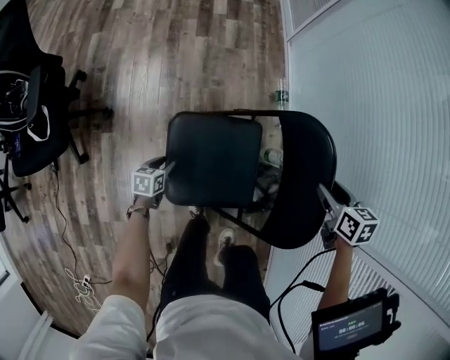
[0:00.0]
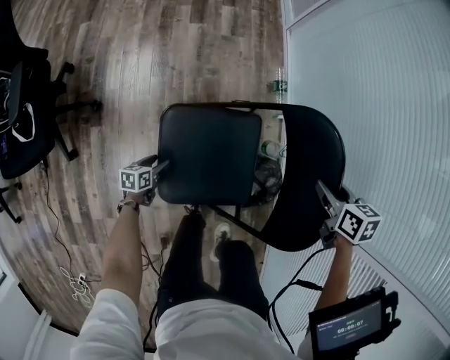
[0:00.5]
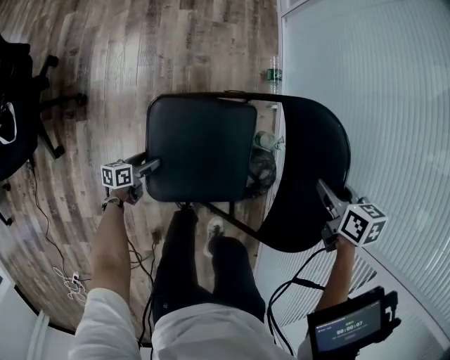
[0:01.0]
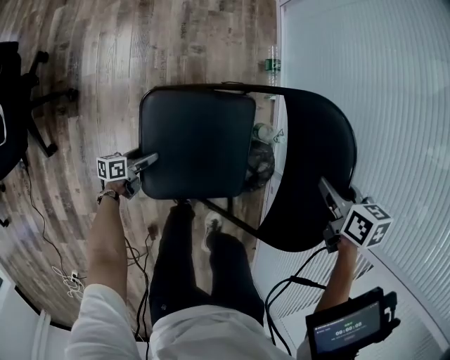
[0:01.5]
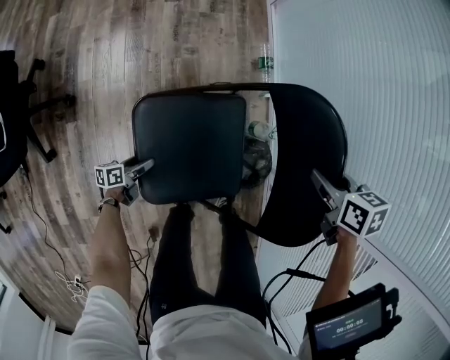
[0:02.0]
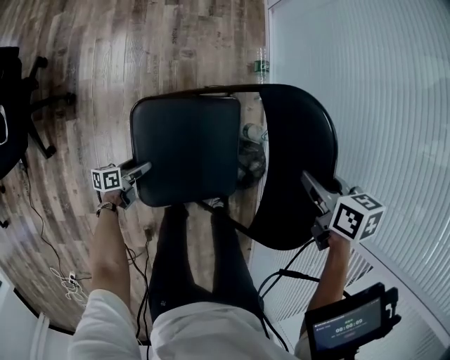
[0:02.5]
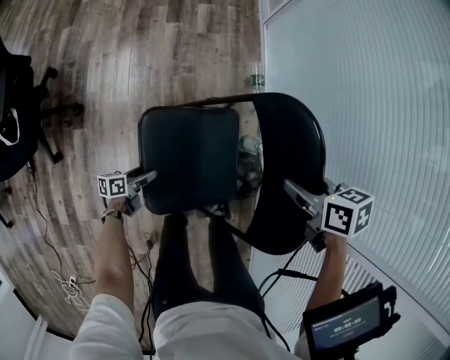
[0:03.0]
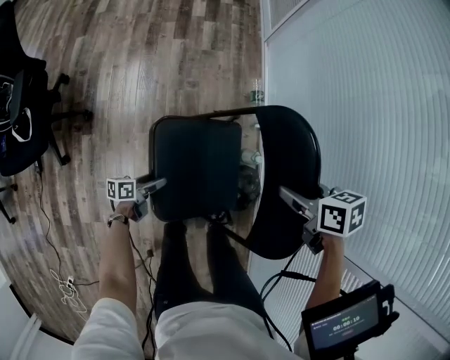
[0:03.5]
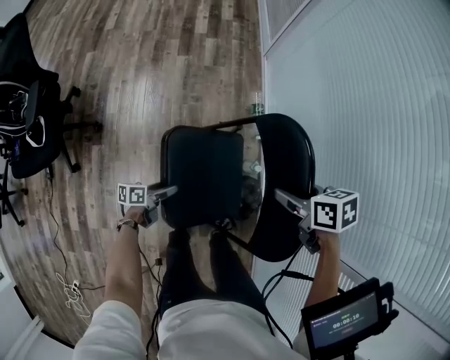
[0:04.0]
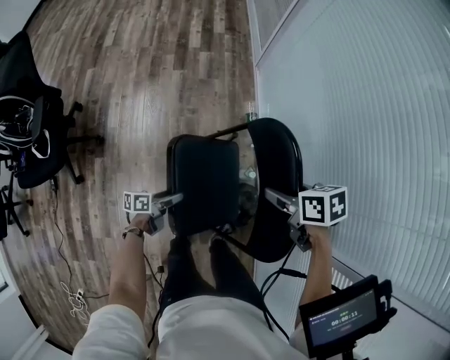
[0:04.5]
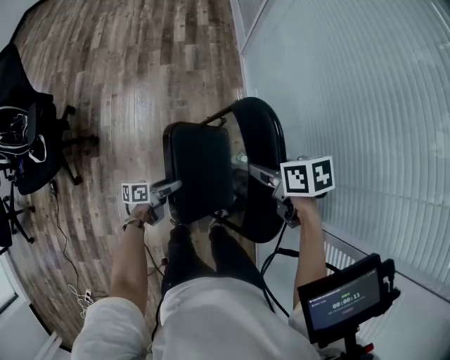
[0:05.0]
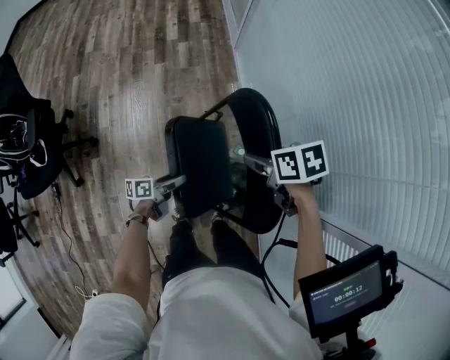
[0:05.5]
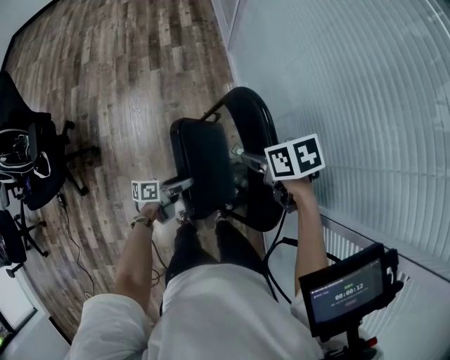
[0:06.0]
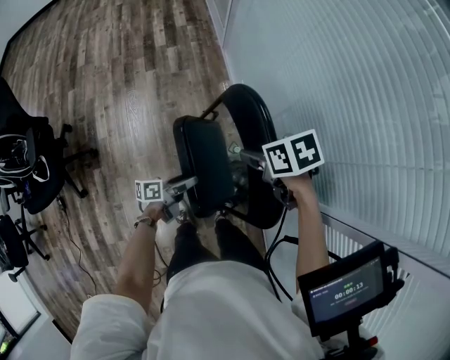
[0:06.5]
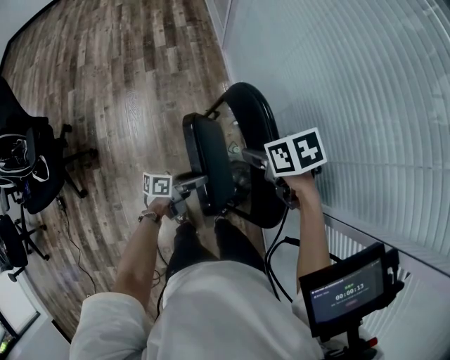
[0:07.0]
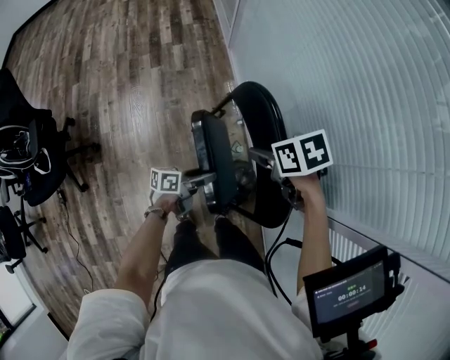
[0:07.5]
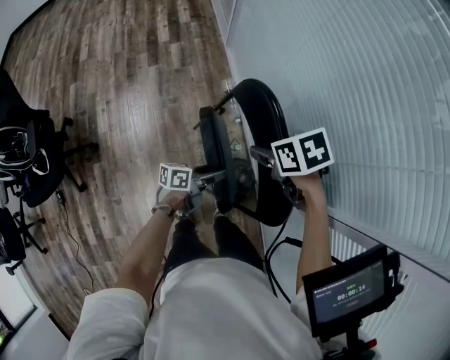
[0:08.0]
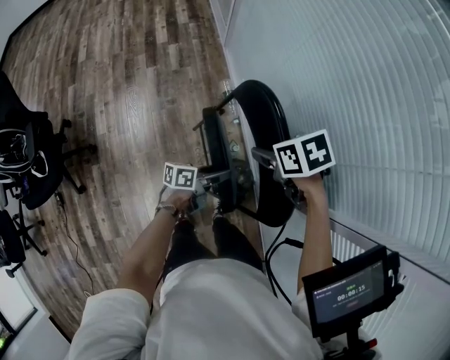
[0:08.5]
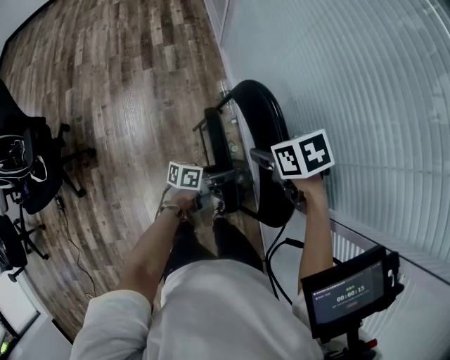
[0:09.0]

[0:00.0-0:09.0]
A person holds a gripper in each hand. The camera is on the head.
0:00.0 to 0:02.0: The left gripper shifts some 10 cm downward, turns by approximately 40 degrees, and opens.
0:02.0 to 0:04.5: The left gripper shifts about 25 cm upward and to the right. Meanwhile the right gripper heads upward, covering some 10 cm.
0:04.5 to 0:07.0: The left gripper changes place by approximately 15 cm.
0:07.0 to 0:09.0: The left gripper changes place by some 10 cm.

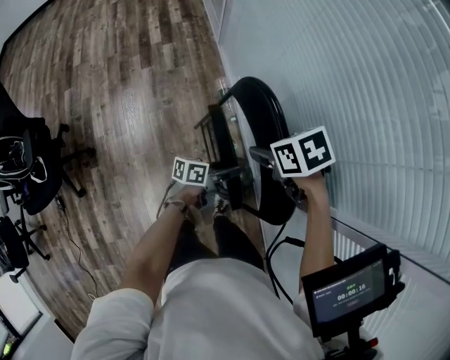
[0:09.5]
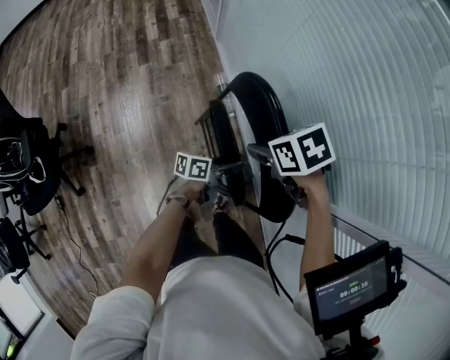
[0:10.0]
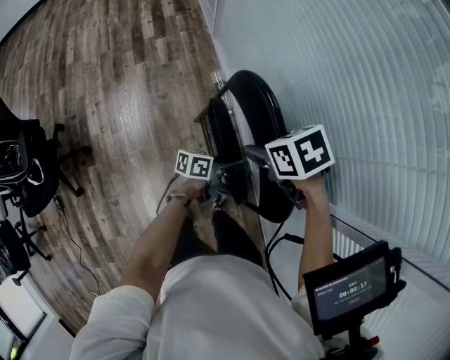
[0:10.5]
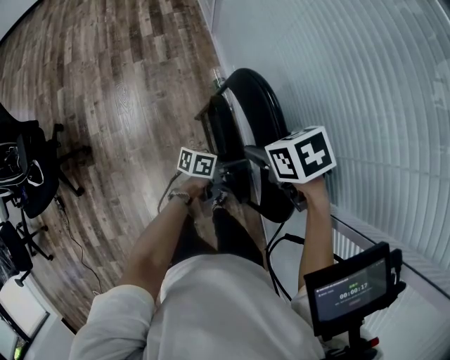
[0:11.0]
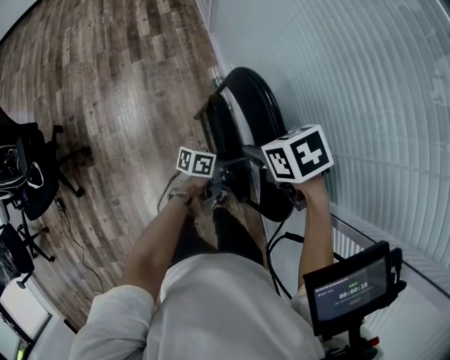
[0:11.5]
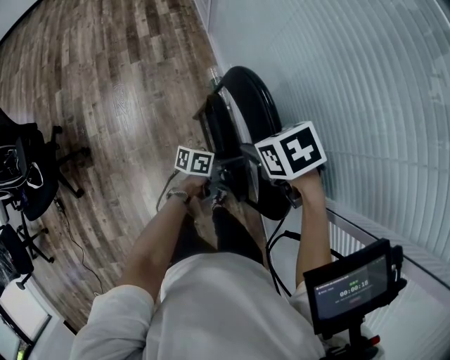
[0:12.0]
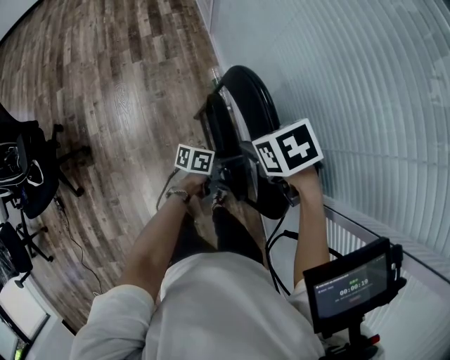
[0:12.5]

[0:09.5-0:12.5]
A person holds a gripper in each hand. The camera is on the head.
0:09.5 to 0:12.5: There are only small adjustments of the grippers.

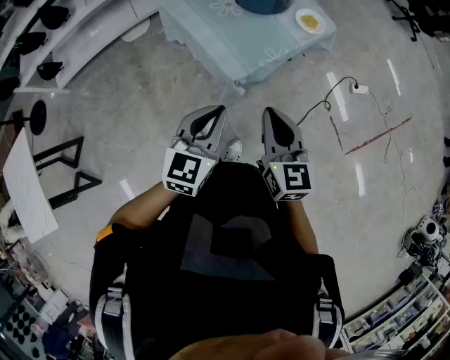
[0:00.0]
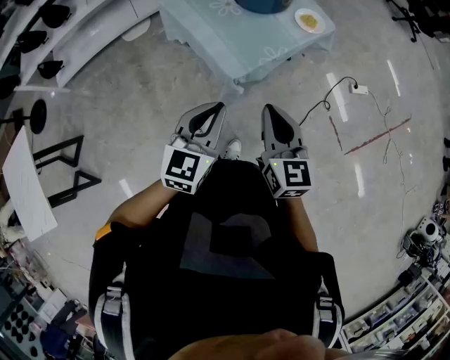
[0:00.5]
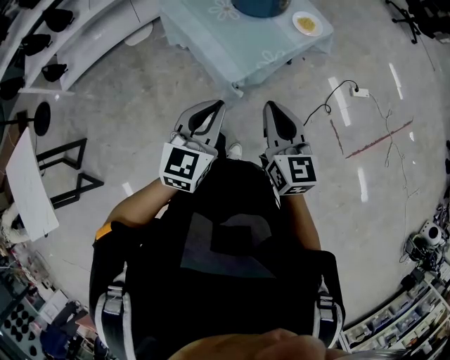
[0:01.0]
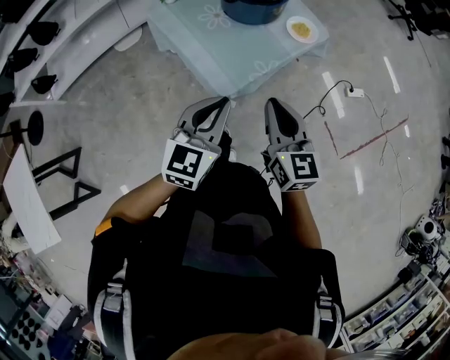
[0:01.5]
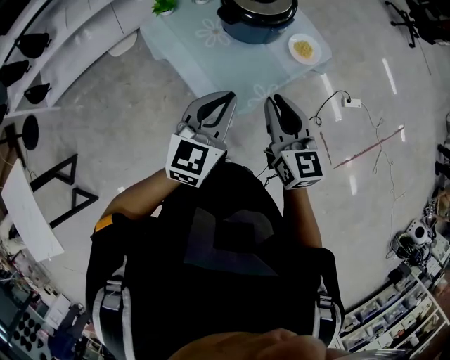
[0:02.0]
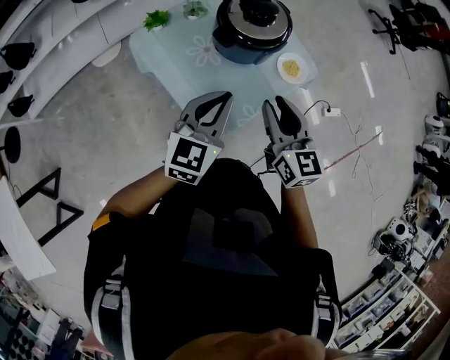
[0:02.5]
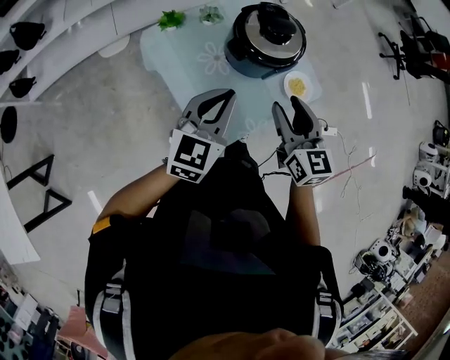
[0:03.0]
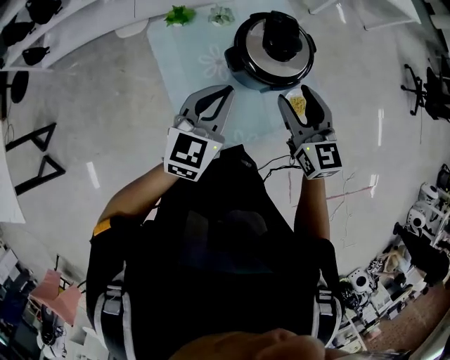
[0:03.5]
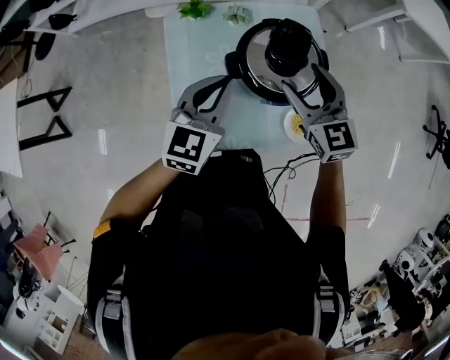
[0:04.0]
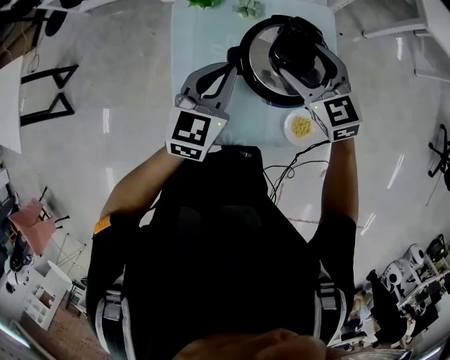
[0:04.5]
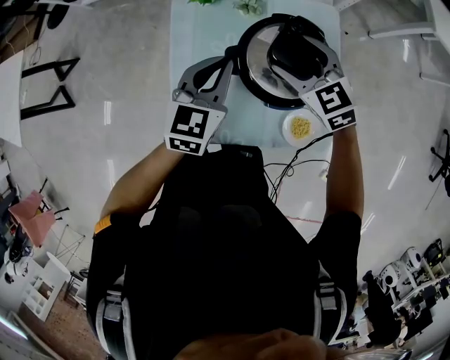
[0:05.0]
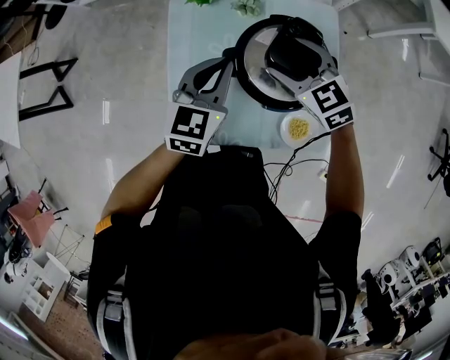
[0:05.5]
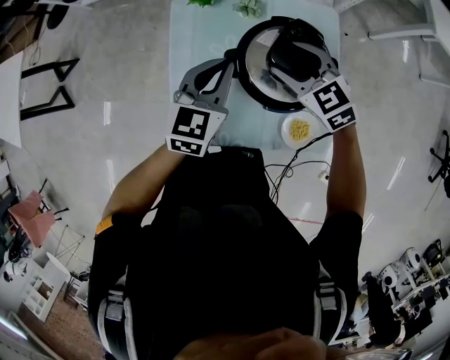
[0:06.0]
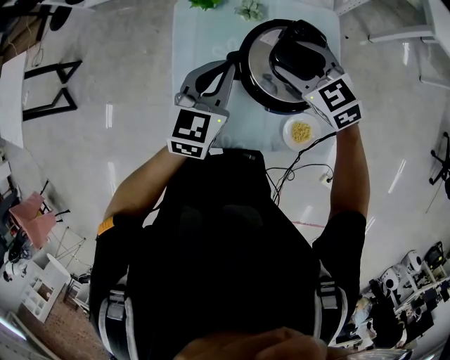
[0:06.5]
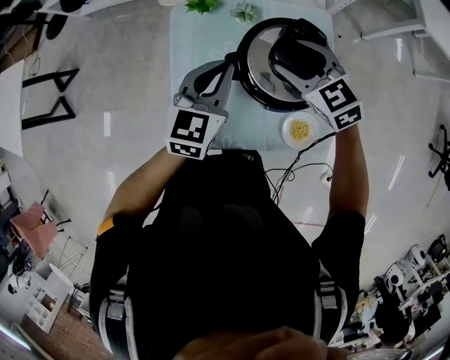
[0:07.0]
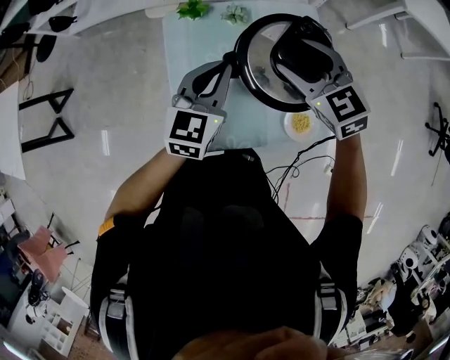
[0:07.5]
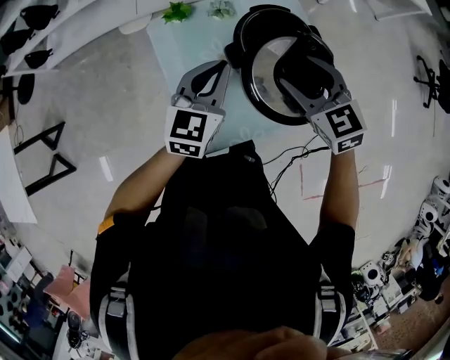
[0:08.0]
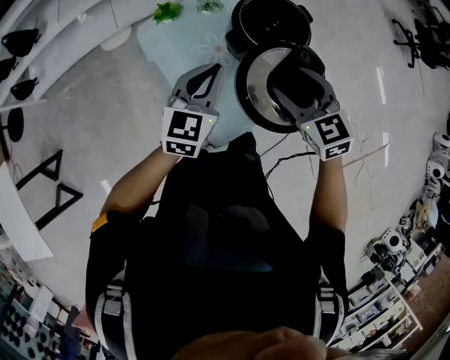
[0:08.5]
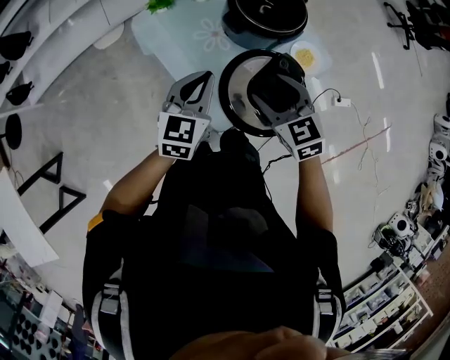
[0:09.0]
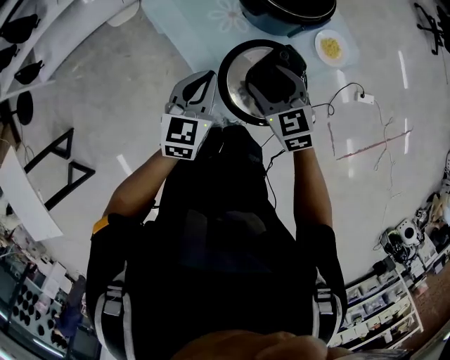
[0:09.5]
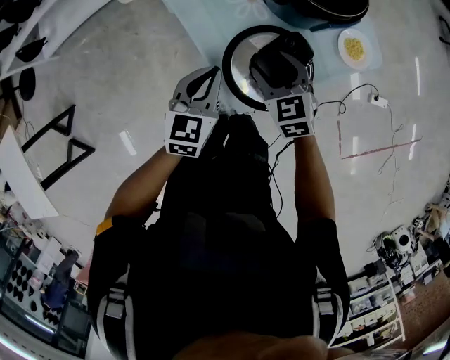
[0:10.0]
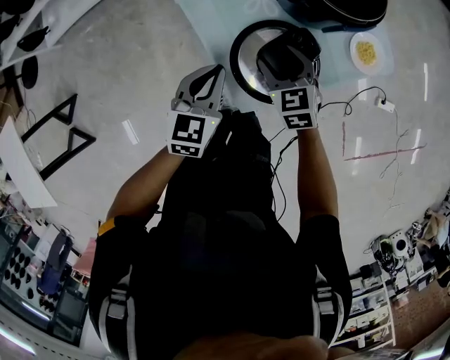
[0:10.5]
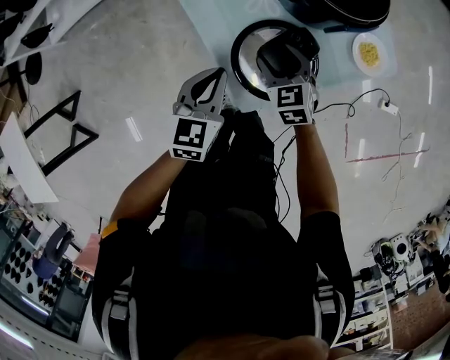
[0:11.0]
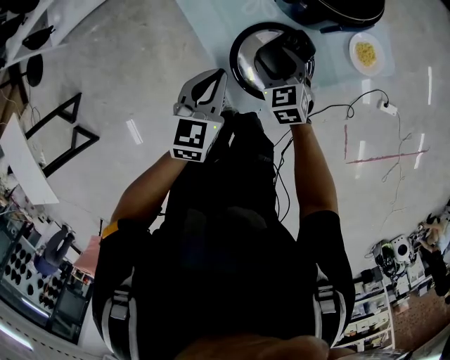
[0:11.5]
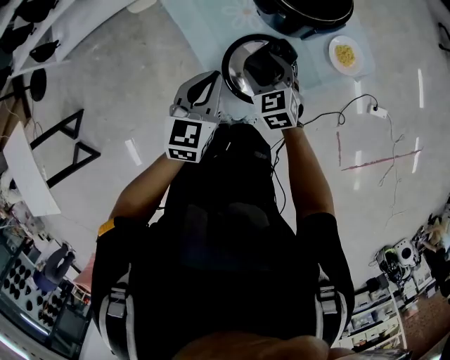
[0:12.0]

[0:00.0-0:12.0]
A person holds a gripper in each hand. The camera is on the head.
0:00.0 to 0:02.0: Both grippers move forward, roughly 25 cm.
0:02.0 to 0:04.0: The right gripper changes place by approximately 35 cm, swivels approximately 50 degrees, and opens up, while the left gripper ends up about 25 cm from where it was, and swivels roughly 30 degrees.
0:04.0 to 0:06.0: The right gripper moves downward and forward, some 10 cm, and turns by roughly 30 degrees, while the left gripper heads forward, covering some 5 cm.
0:06.0 to 0:08.0: The left gripper shifts by about 5 cm, and turns by roughly 20 degrees. Meanwhile the right gripper shifts by some 15 cm, and turns by some 30 degrees.
0:08.0 to 0:10.0: Both grippers move downward, backward and to the left, some 25 cm. The right gripper rotates approximately 20 degrees.
0:10.0 to 0:12.0: The left gripper is displaced upward by some 5 cm.

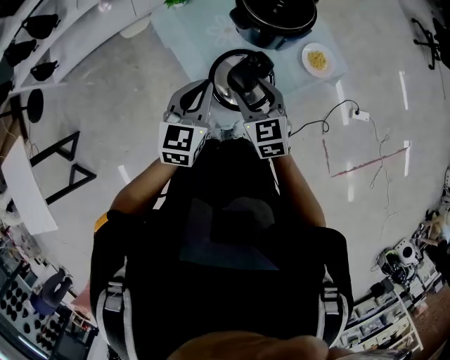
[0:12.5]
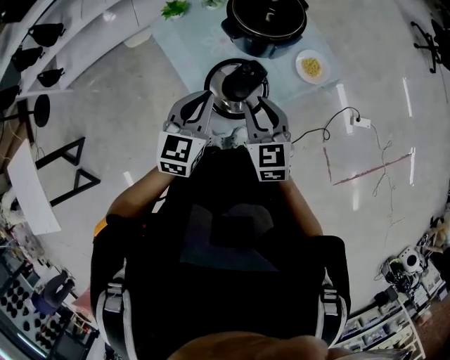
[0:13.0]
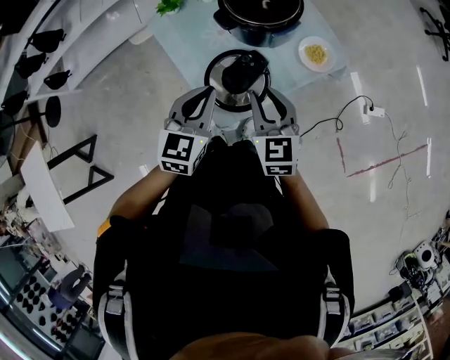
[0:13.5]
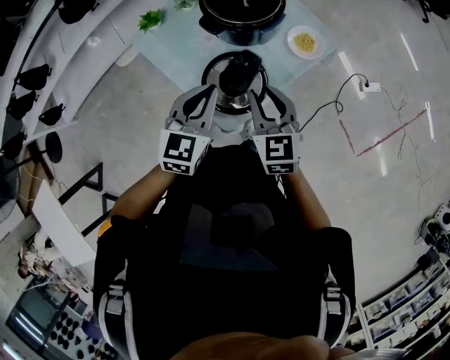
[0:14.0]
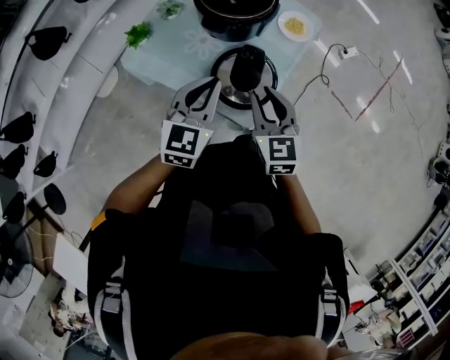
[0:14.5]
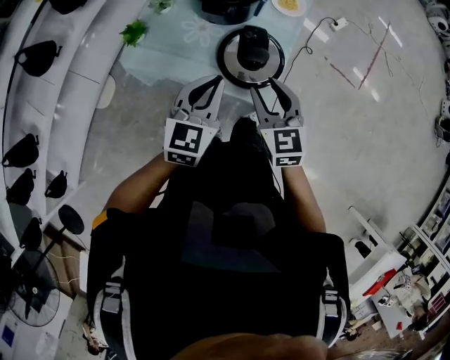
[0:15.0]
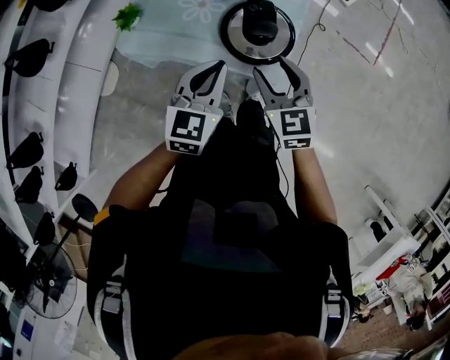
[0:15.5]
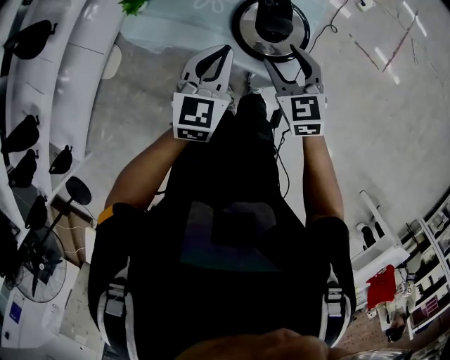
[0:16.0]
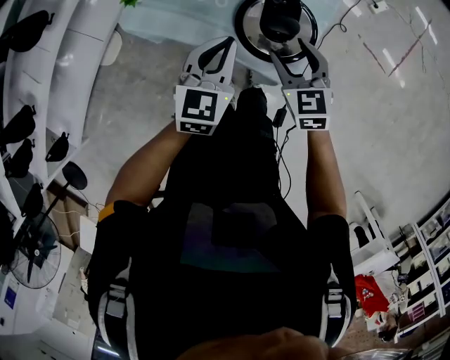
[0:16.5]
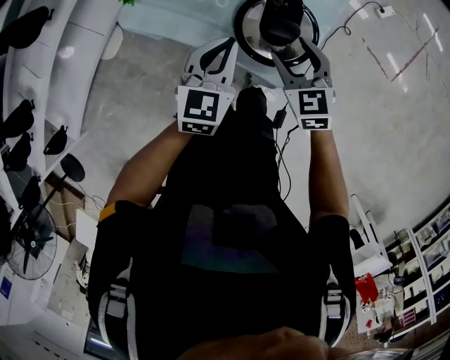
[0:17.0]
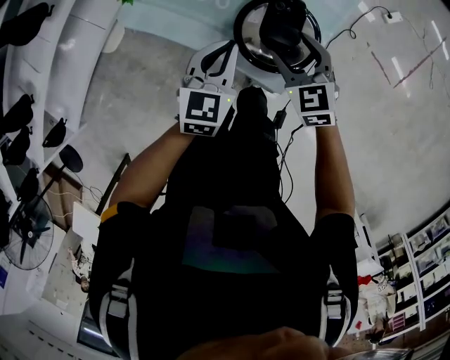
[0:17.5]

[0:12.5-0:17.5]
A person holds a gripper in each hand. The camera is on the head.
0:12.5 to 0:15.0: The right gripper ends up some 10 cm from where it was, and rotates approximately 50 degrees. The left gripper changes place by about 5 cm, and turns by some 50 degrees.
0:15.0 to 0:17.5: The two grippers go approximately 15 cm downward and forward. The right gripper swivels about 20 degrees.
